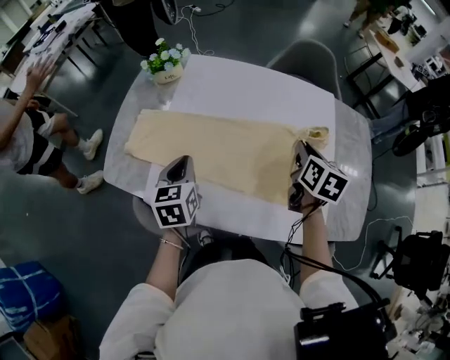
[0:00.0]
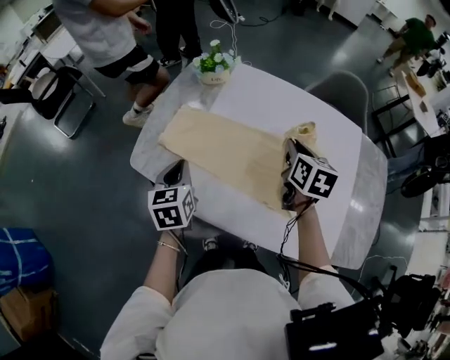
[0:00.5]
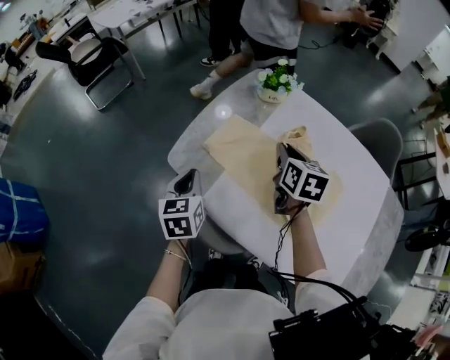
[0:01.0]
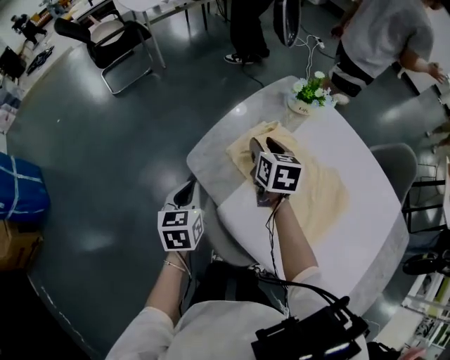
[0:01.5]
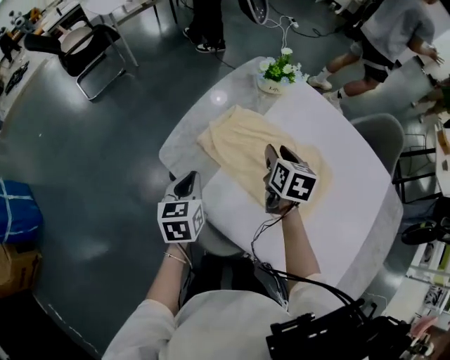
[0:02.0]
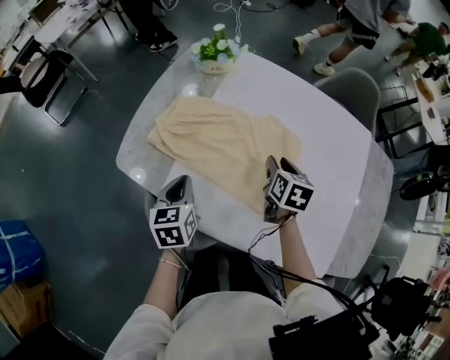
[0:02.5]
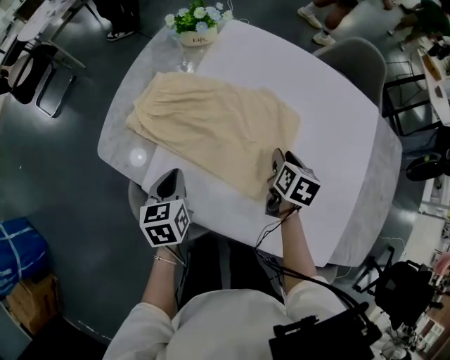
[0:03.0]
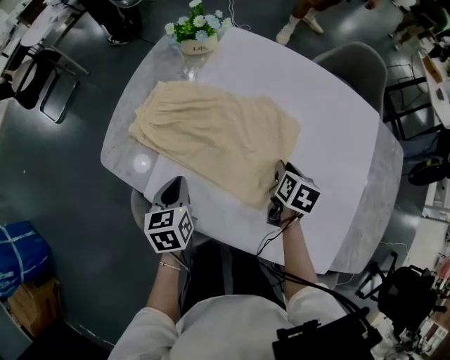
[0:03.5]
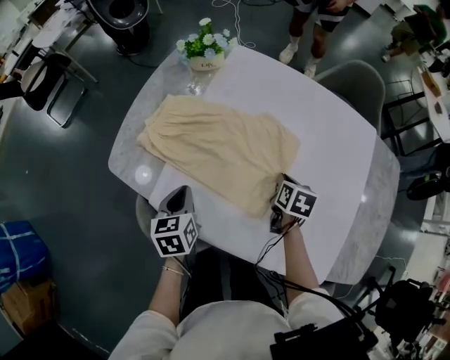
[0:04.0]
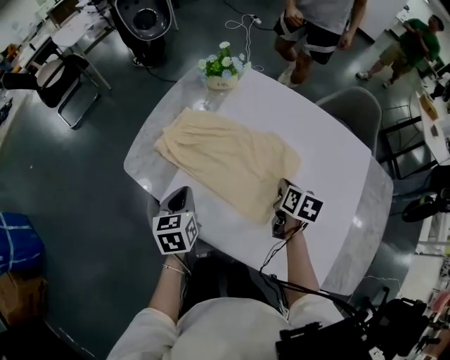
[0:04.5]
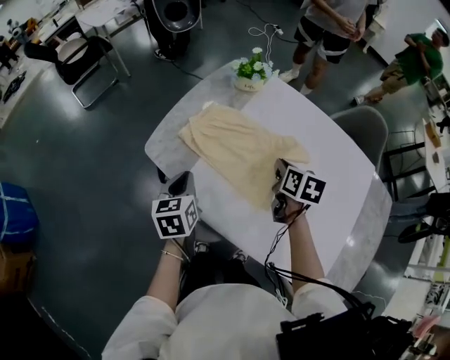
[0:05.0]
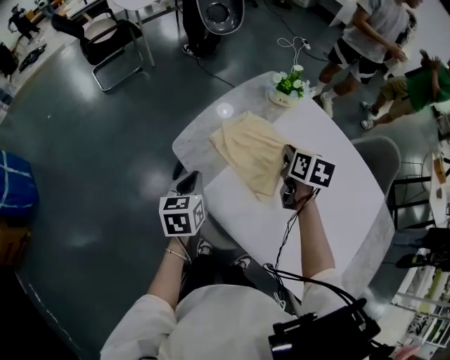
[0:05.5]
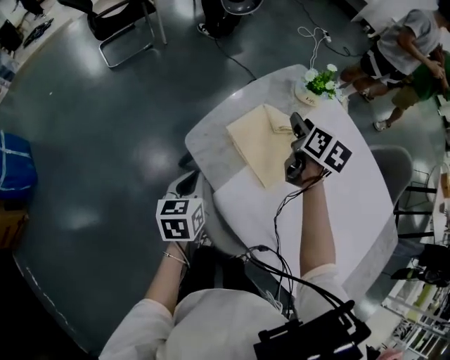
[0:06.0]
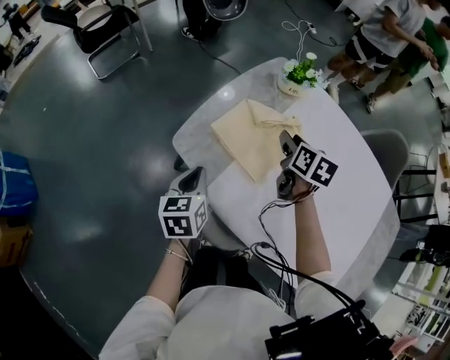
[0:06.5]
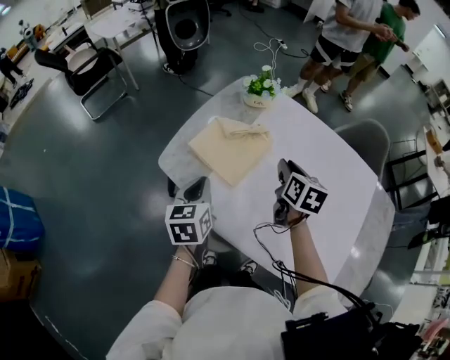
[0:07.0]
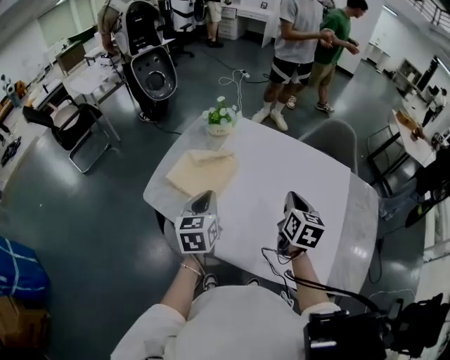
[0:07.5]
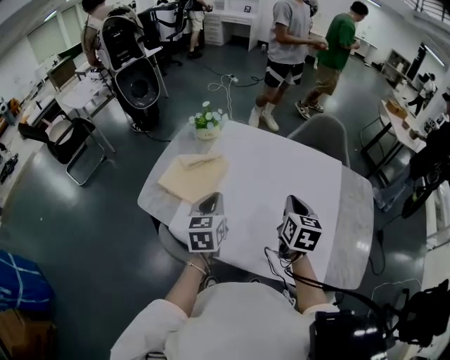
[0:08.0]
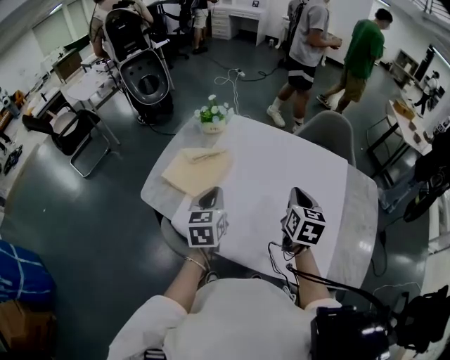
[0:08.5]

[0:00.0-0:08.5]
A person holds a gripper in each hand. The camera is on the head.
0:00.0 to 0:02.0: The right gripper ends up approximately 40 cm from where it was, turns by approximately 30 degrees, and opens its fingers. The left gripper ends up some 25 cm from where it was, and changes its angle by about 20 degrees.
0:02.0 to 0:04.0: The left gripper is displaced to the right by some 15 cm. The right gripper travels to the right and downward by some 30 cm, changes its angle by approximately 20 degrees, and closes.
0:04.0 to 0:06.5: The right gripper goes about 35 cm to the left, forward and upward, rotates some 30 degrees, and opens its fingers. Meanwhile the left gripper travels to the left by roughly 20 cm.
0:06.5 to 0:08.5: The left gripper heads to the right and upward, covering approximately 30 cm, and rotates approximately 20 degrees; the right gripper moves to the right, backward and upward, some 40 cm, rotates approximately 30 degrees, and closes.

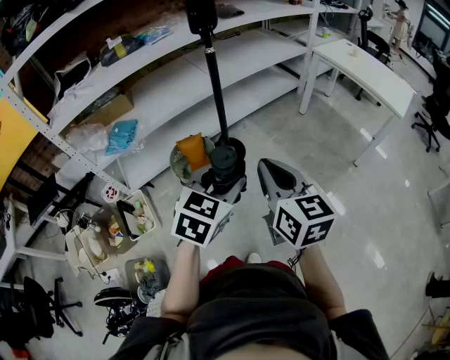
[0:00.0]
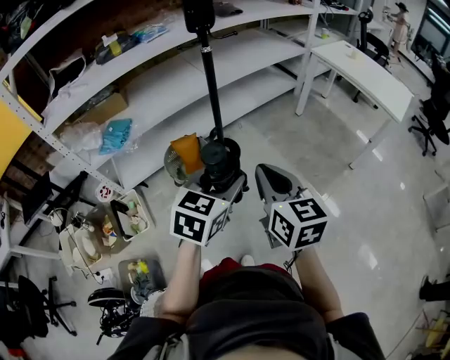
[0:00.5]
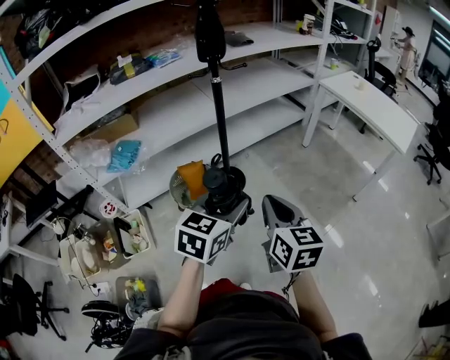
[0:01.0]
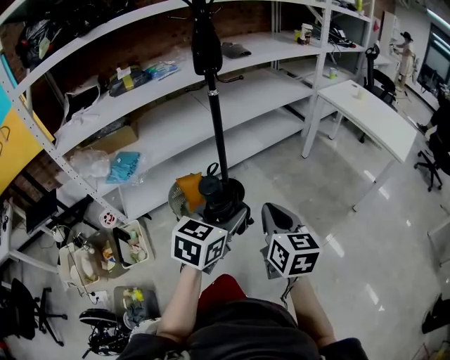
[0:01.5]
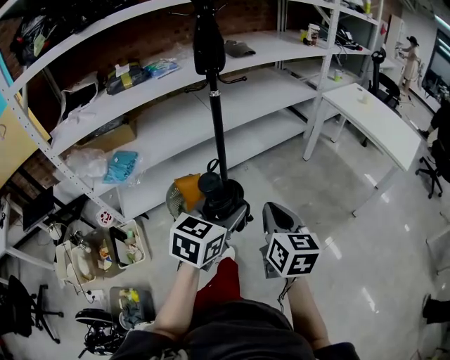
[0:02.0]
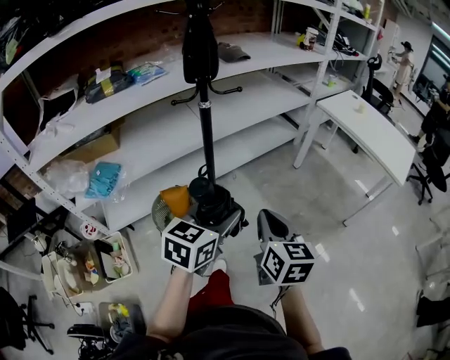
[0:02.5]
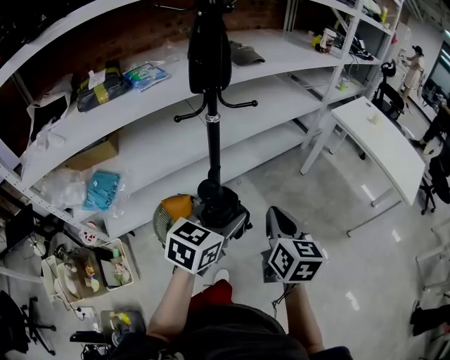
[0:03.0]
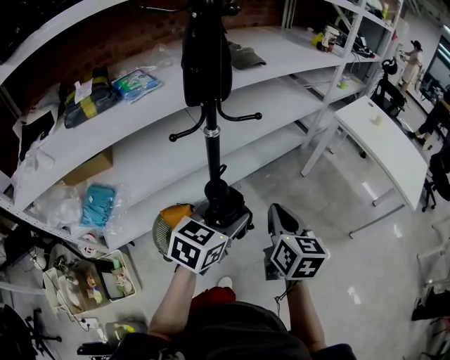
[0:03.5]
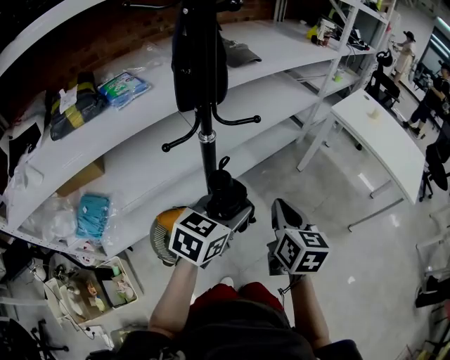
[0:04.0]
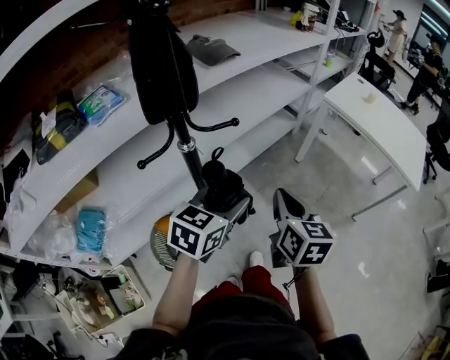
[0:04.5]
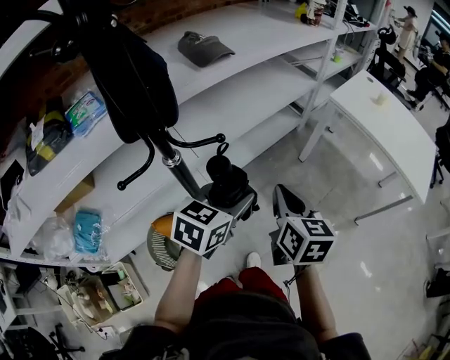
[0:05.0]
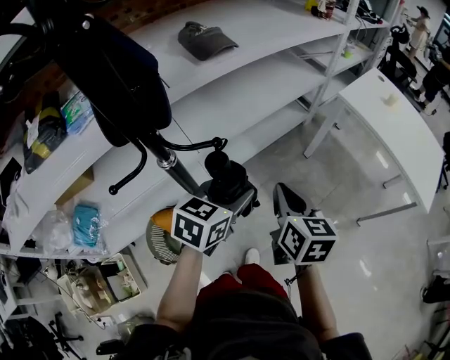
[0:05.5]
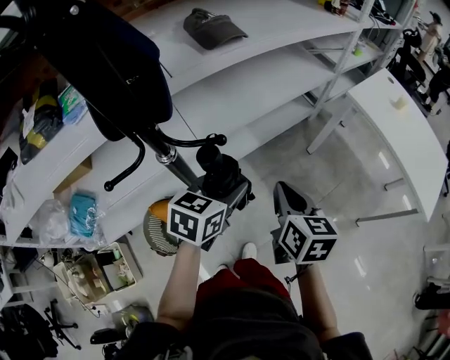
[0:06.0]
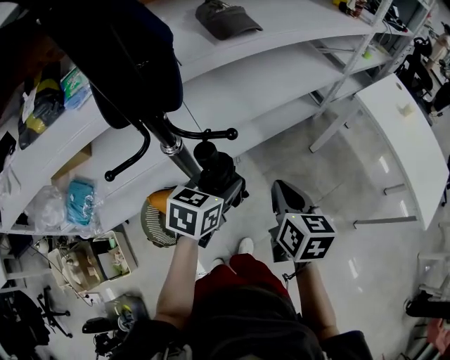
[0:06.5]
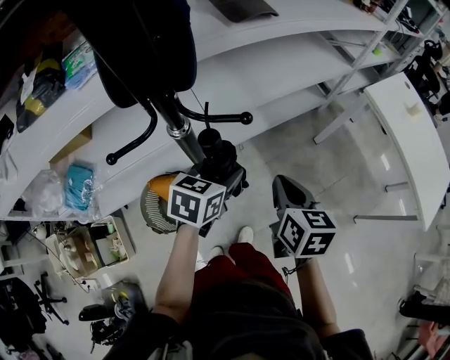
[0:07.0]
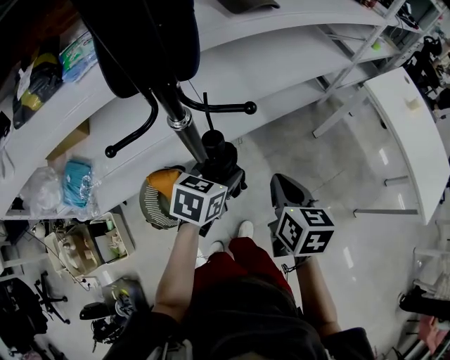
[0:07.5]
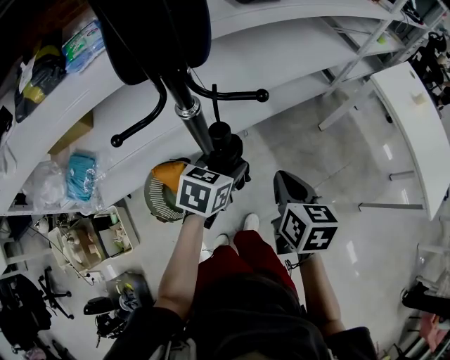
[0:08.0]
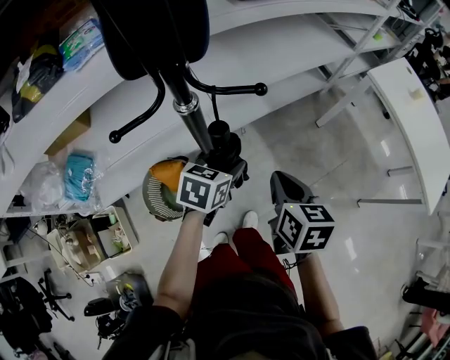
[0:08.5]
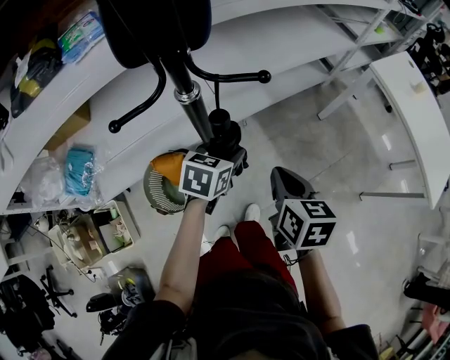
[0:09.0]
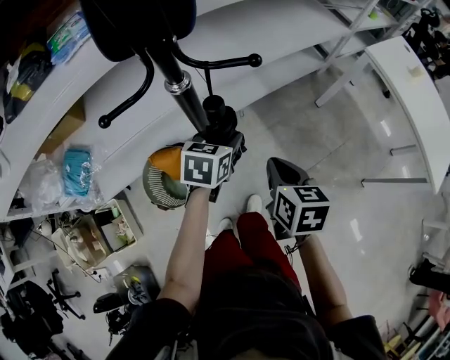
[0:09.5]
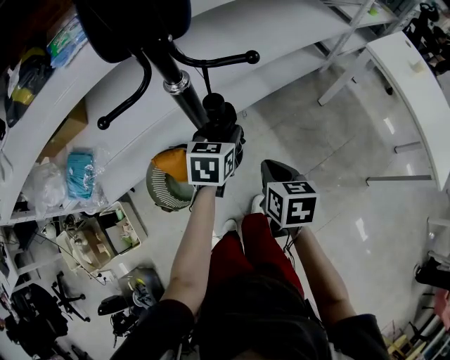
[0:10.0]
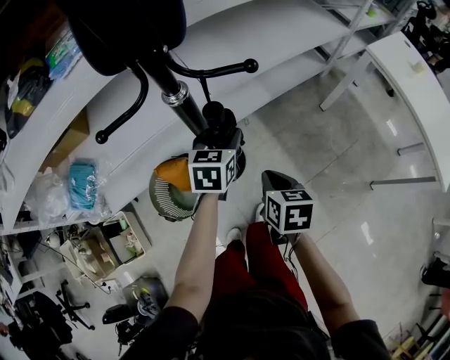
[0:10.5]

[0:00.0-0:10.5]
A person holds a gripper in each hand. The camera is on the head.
0:00.0 to 0:02.0: Both grippers move forward, approximately 10 cm.
0:02.0 to 0:04.0: The grippers both shift forward by about 35 cm.
0:04.0 to 0:06.5: The left gripper shifts approximately 20 cm forward and downward. Meanwhile the right gripper travels forward by roughly 15 cm.
0:06.5 to 0:08.5: The right gripper is displaced backward by some 5 cm, while the left gripper moves downward, approximately 10 cm.
0:08.5 to 0:10.5: The left gripper heads forward, covering roughly 5 cm. Meanwhile the right gripper moves downward, some 10 cm.

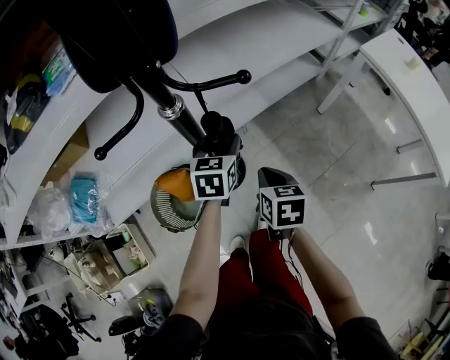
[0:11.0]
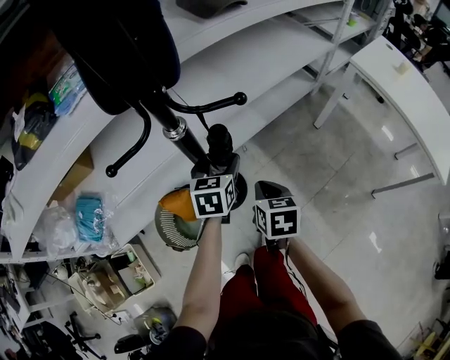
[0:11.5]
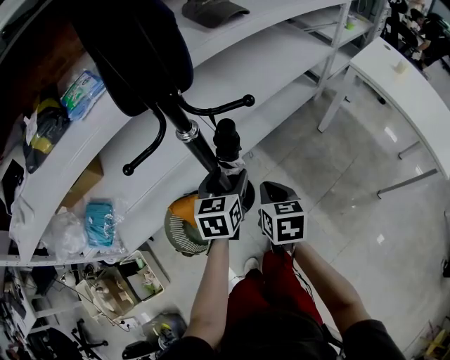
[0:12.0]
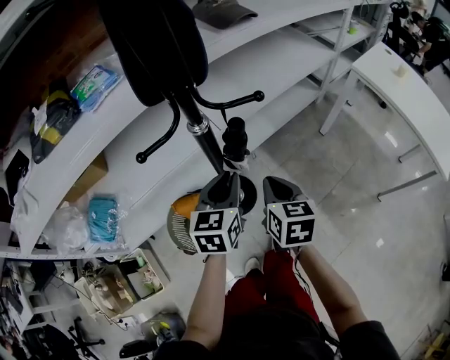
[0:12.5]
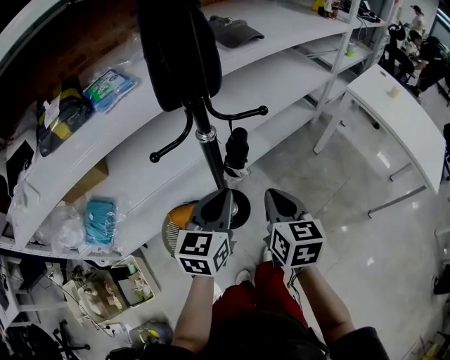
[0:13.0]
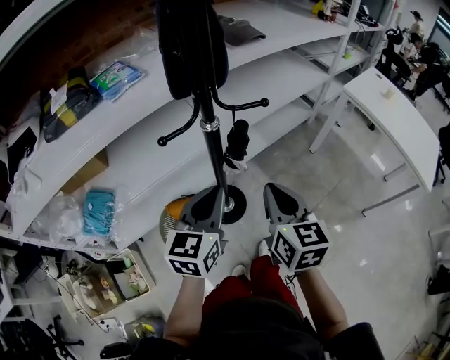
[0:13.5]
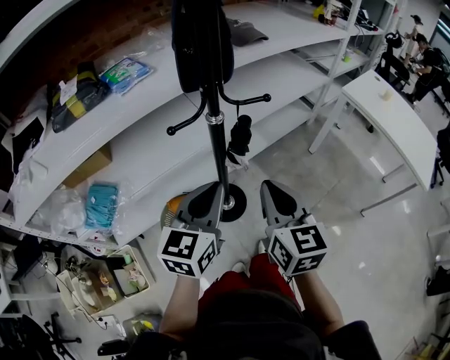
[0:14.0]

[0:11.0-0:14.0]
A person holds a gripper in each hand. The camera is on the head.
0:11.0 to 0:12.5: The right gripper moves upward, roughly 10 cm, while the left gripper shifts approximately 15 cm backward and upward, and closes up.
0:12.5 to 0:14.0: Both grippers move upward and backward, some 20 cm. The right gripper turns by about 20 degrees.

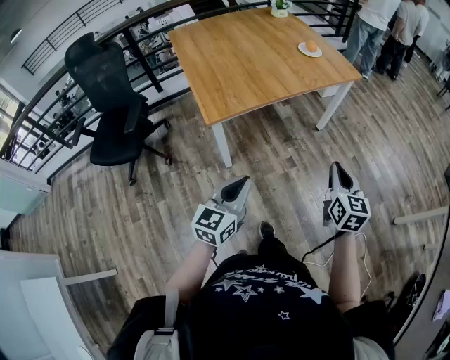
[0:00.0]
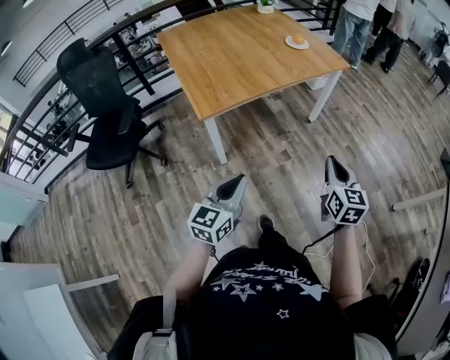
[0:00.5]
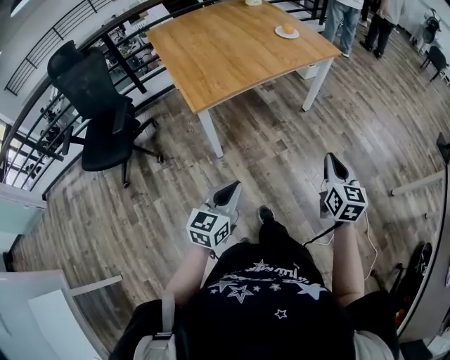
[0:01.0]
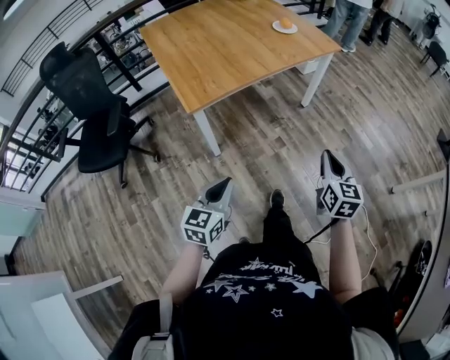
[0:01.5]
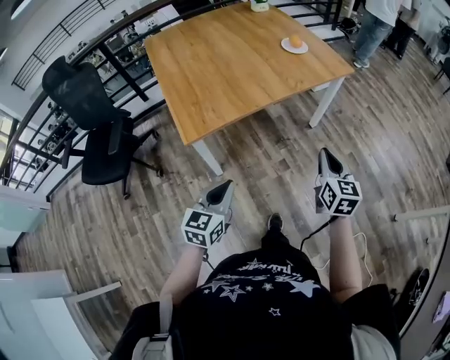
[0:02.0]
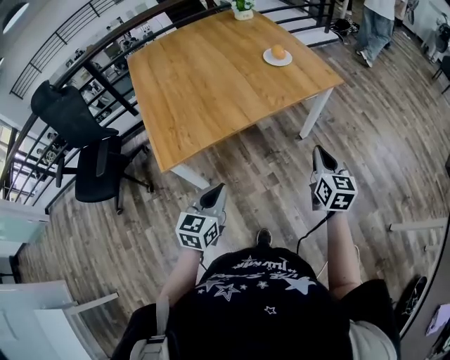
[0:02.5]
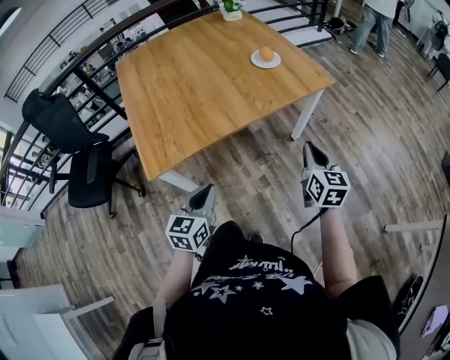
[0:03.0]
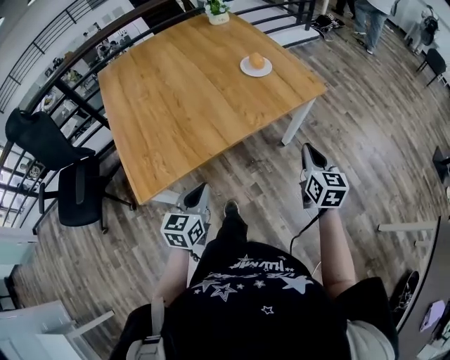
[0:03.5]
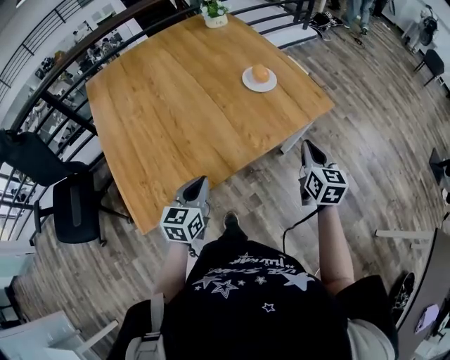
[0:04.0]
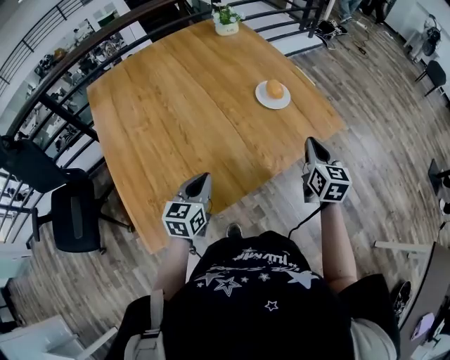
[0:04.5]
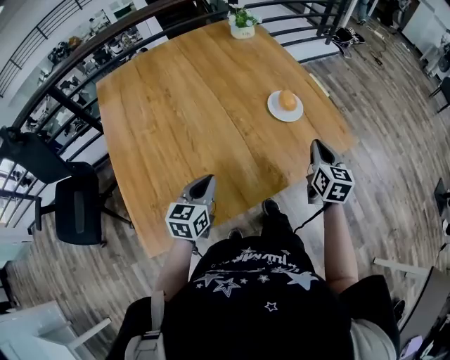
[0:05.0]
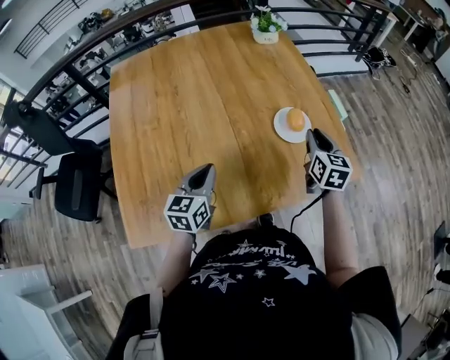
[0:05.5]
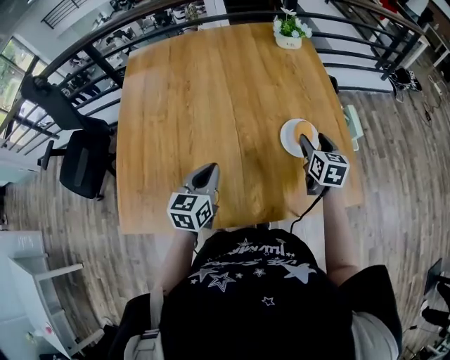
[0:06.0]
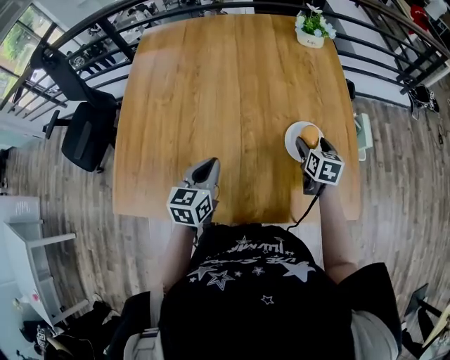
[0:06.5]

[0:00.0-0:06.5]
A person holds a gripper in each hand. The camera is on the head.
0:00.0 to 0:02.0: Both grippers move forward, roughly 15 cm.
0:02.0 to 0:04.5: Both grippers are carried forward, about 40 cm.
0:04.5 to 0:06.5: The right gripper changes place by roughly 35 cm, rotates roughly 30 degrees, and opens. The left gripper ends up some 15 cm from where it was, and turns by about 30 degrees.
